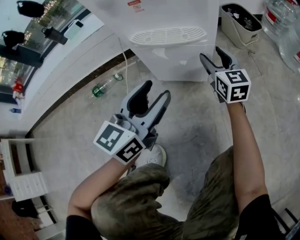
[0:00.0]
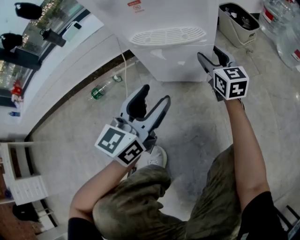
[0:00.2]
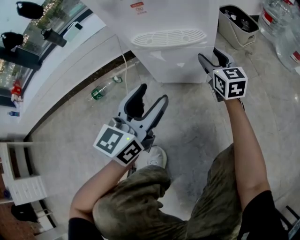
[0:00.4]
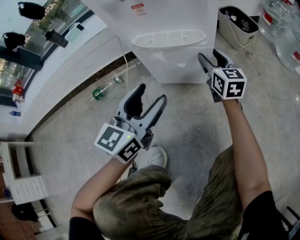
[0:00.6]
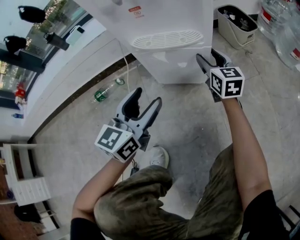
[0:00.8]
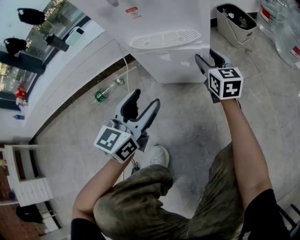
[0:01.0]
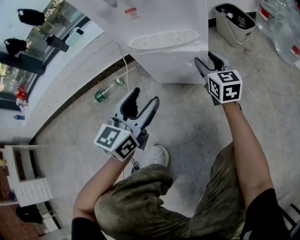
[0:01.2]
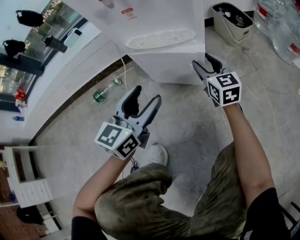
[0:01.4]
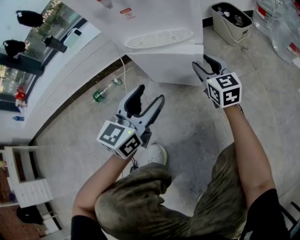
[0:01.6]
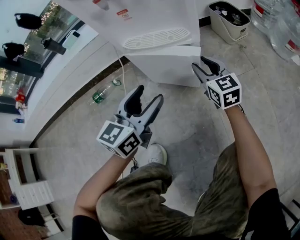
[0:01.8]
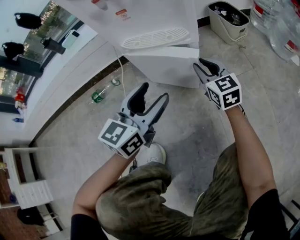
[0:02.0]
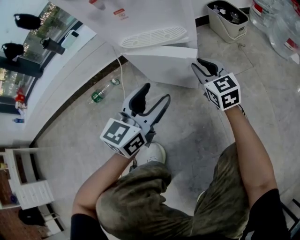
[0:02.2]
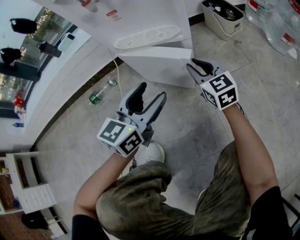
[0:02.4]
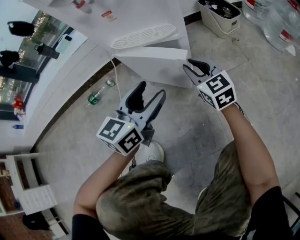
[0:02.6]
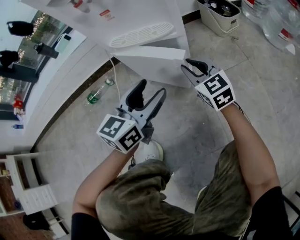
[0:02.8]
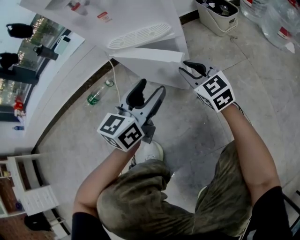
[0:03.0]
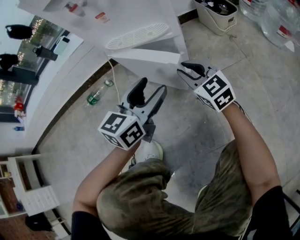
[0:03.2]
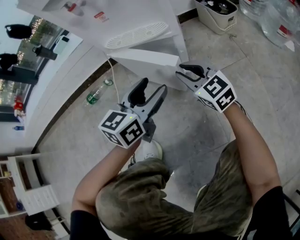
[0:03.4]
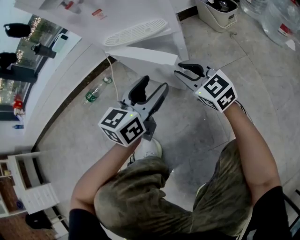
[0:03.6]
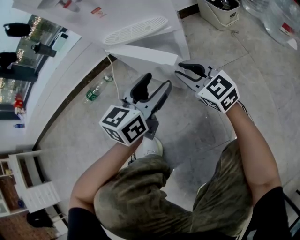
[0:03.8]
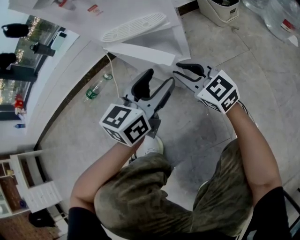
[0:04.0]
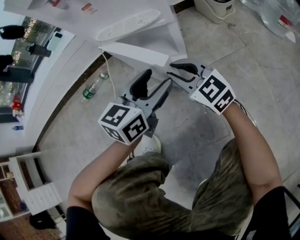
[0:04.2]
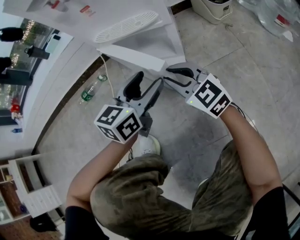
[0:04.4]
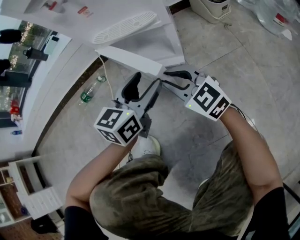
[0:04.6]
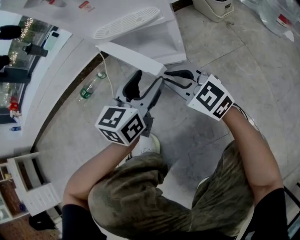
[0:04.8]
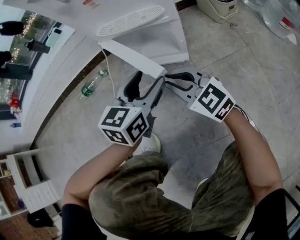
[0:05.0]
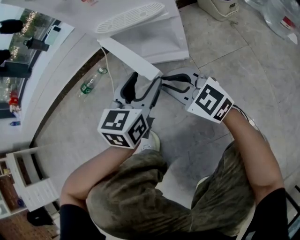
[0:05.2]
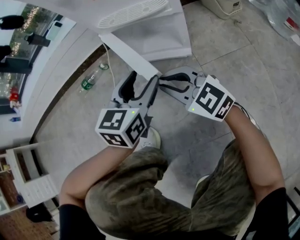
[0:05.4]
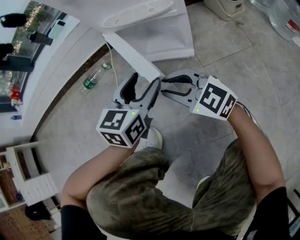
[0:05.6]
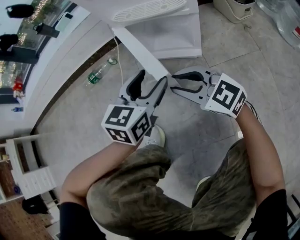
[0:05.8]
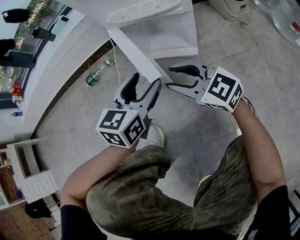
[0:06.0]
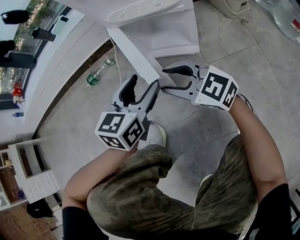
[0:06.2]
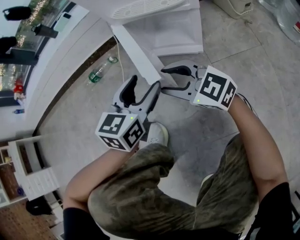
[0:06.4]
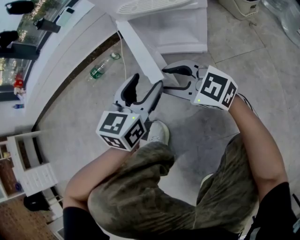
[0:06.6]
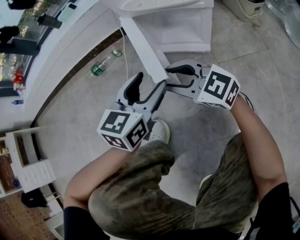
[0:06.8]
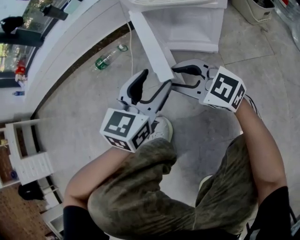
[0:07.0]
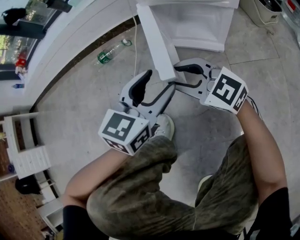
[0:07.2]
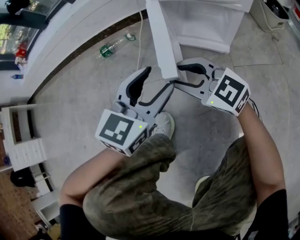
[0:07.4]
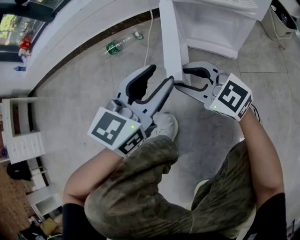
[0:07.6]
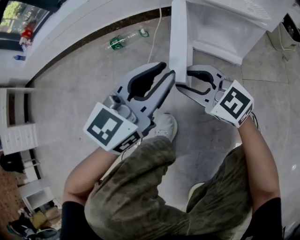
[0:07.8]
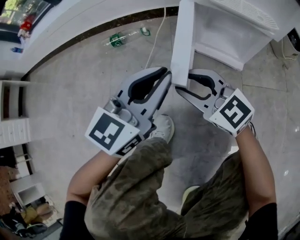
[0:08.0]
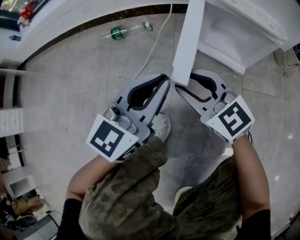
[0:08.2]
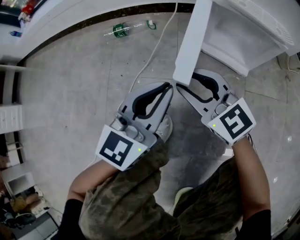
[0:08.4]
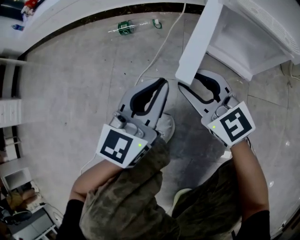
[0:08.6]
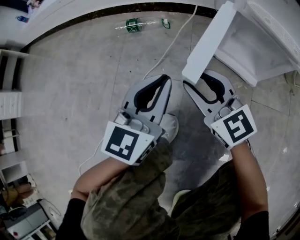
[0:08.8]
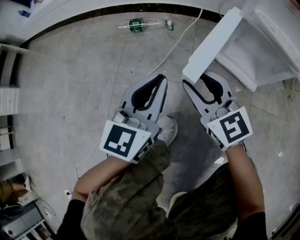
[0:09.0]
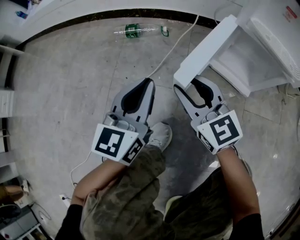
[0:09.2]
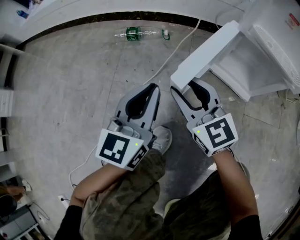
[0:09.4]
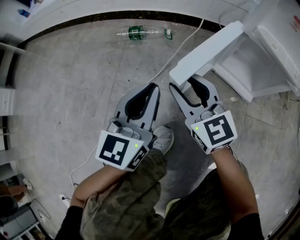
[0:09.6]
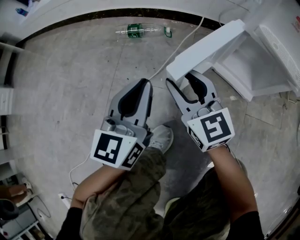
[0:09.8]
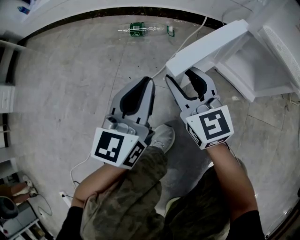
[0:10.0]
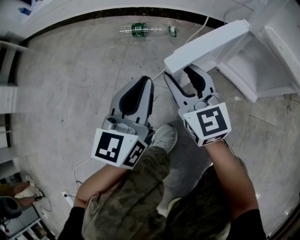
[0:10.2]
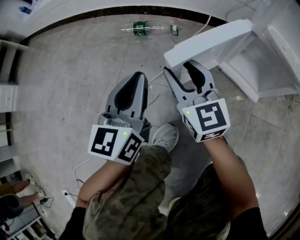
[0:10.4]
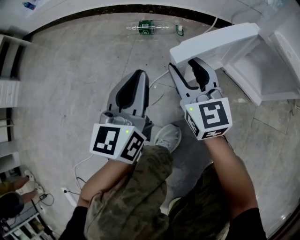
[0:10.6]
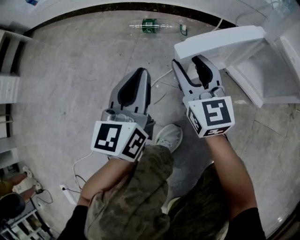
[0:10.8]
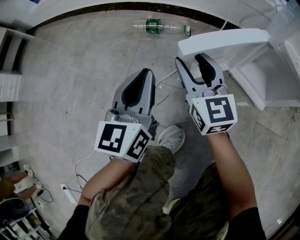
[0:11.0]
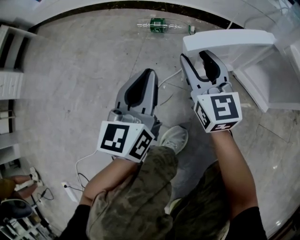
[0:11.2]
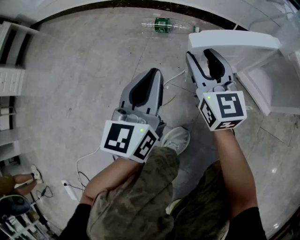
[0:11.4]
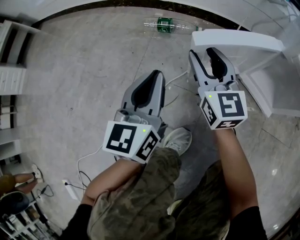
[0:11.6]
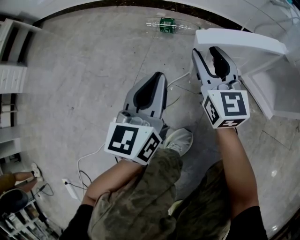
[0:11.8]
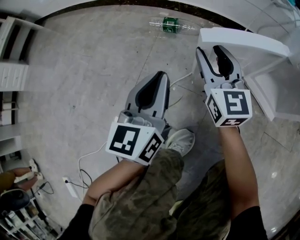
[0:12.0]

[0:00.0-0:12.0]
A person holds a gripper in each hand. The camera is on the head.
0:00.0 to 0:01.6: There are only small adjustments of the grippers.
0:01.6 to 0:03.0: The left gripper moves to the right, approximately 5 cm. Meanwhile the right gripper moves backward, some 5 cm, and closes.
0:03.0 to 0:04.4: The right gripper goes roughly 5 cm backward.
0:04.4 to 0:06.0: The two grippers go about 5 cm to the left.
0:06.0 to 0:07.6: Both grippers travel together to the left, some 10 cm.
0:07.6 to 0:09.0: The left gripper heads to the left, covering approximately 15 cm, swivels about 30 degrees, and closes up. The right gripper is displaced to the left and forward by some 10 cm.
0:09.0 to 0:10.4: The right gripper goes approximately 10 cm forward and to the left. The left gripper is displaced to the left and forward by about 10 cm.
0:10.4 to 0:12.0: The right gripper goes about 10 cm forward. The left gripper changes place by approximately 5 cm.

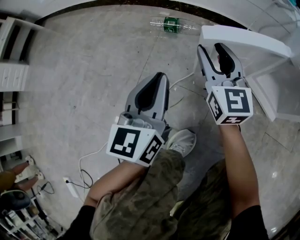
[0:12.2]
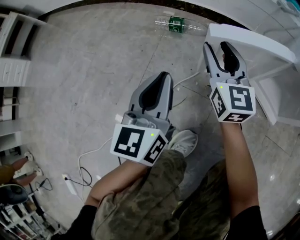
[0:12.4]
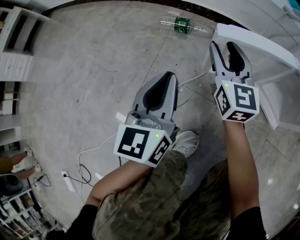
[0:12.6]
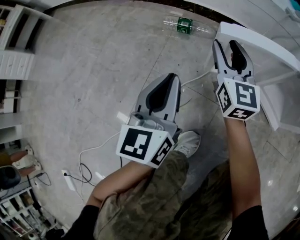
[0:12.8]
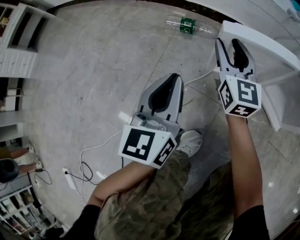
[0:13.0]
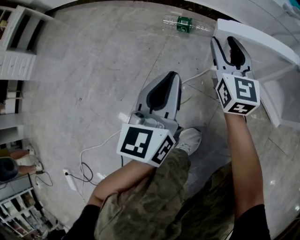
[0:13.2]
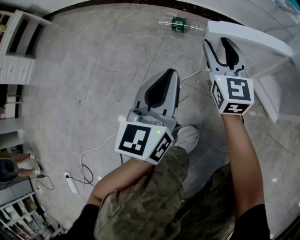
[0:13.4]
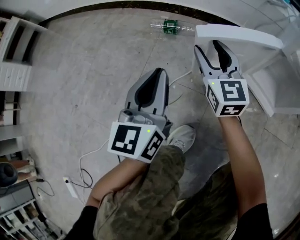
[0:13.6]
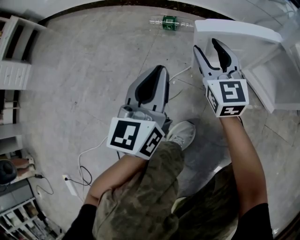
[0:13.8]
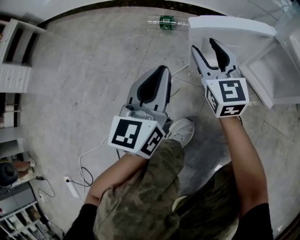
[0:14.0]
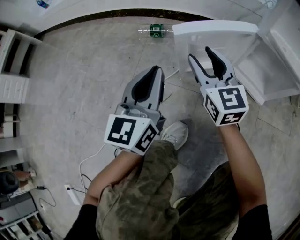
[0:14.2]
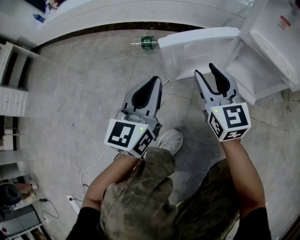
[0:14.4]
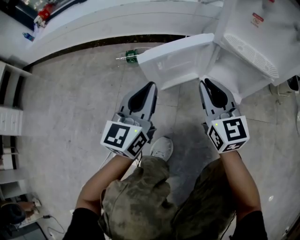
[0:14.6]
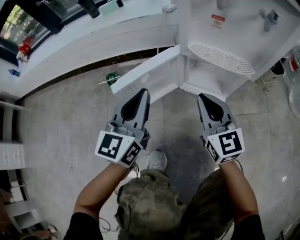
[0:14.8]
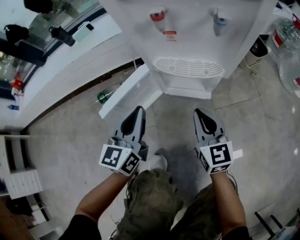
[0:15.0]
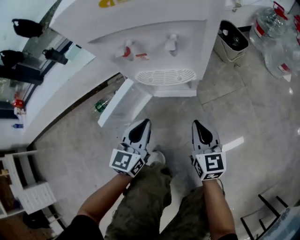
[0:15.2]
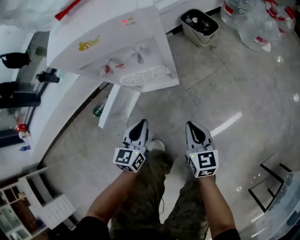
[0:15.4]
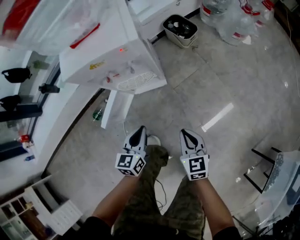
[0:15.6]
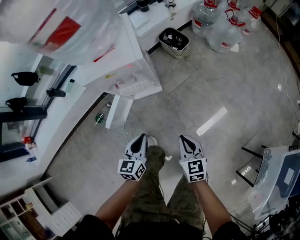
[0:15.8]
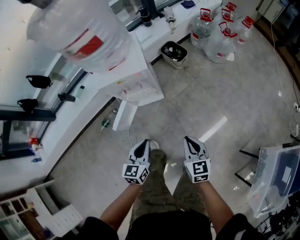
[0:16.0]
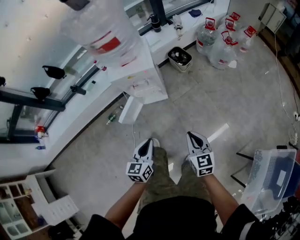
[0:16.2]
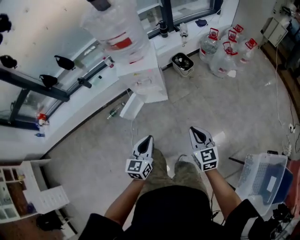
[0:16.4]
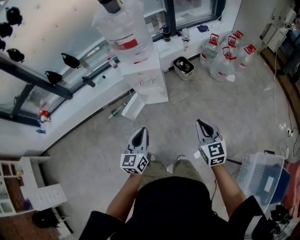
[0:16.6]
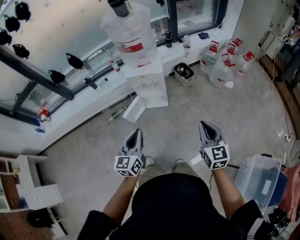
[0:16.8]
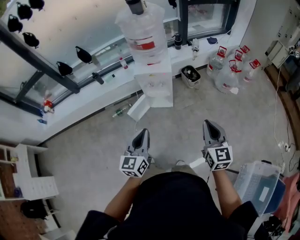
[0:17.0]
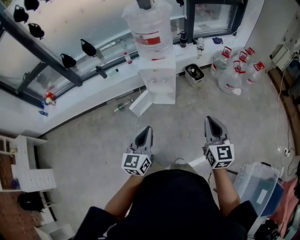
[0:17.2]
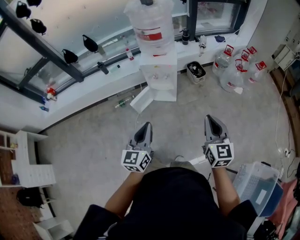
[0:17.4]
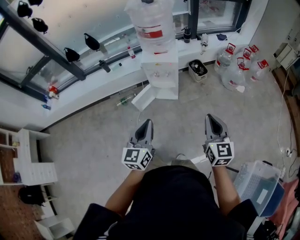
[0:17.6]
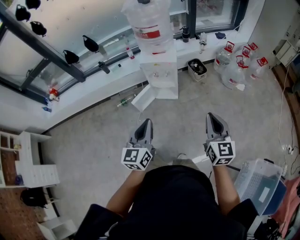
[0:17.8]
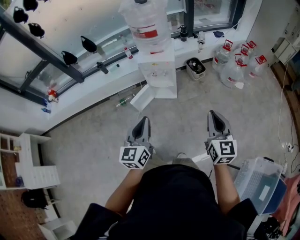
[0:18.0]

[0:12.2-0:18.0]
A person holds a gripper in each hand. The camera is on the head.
0:12.2 to 0:13.6: The grippers make only small movements.
0:13.6 to 0:15.0: The left gripper changes place by about 30 cm, and rotates roughly 40 degrees. The right gripper ends up roughly 35 cm from where it was, turns by roughly 40 degrees, and closes up.
0:15.0 to 0:16.6: The left gripper is displaced upward, backward and to the right by about 60 cm, while the right gripper goes some 70 cm upward, to the right and backward.
0:16.6 to 0:18.0: The right gripper travels upward by about 10 cm. The left gripper moves upward and backward, roughly 10 cm.

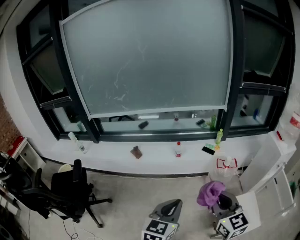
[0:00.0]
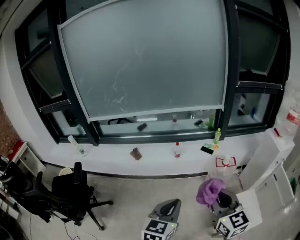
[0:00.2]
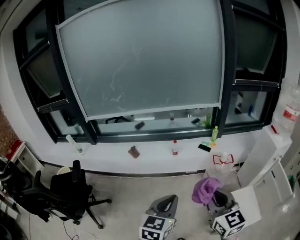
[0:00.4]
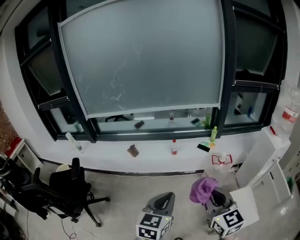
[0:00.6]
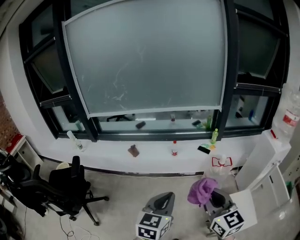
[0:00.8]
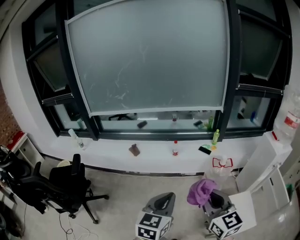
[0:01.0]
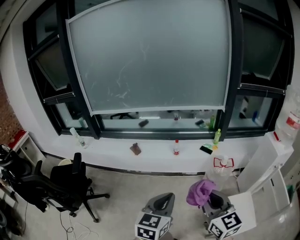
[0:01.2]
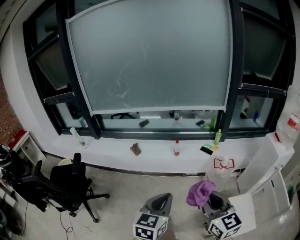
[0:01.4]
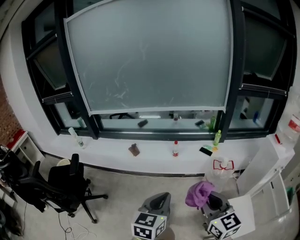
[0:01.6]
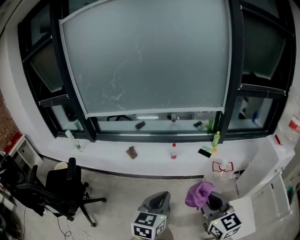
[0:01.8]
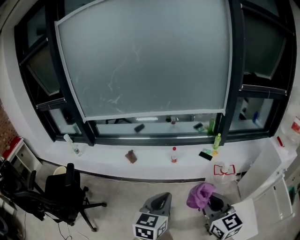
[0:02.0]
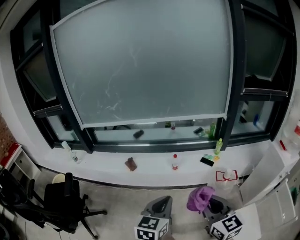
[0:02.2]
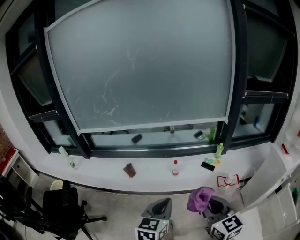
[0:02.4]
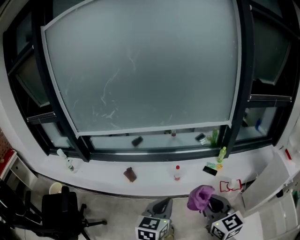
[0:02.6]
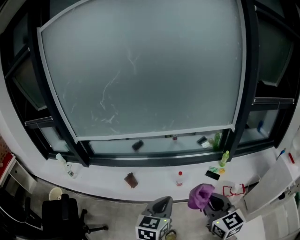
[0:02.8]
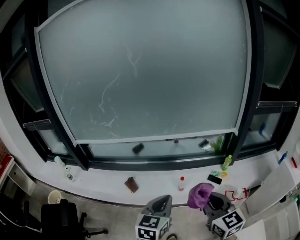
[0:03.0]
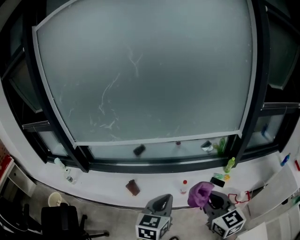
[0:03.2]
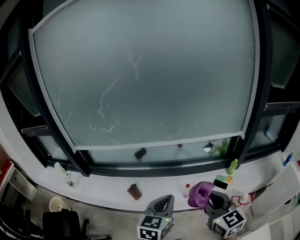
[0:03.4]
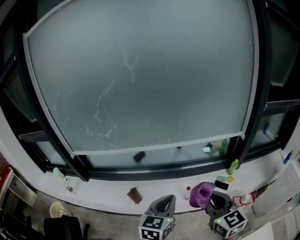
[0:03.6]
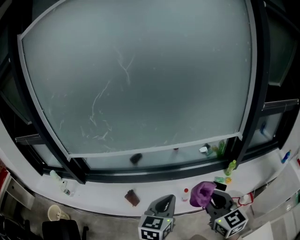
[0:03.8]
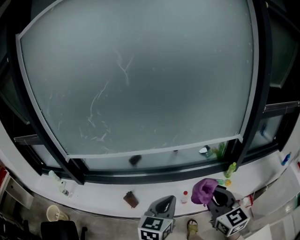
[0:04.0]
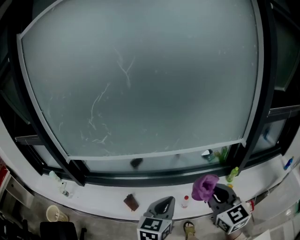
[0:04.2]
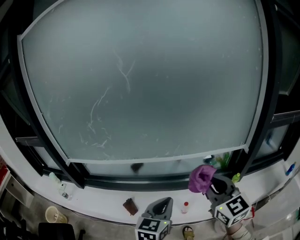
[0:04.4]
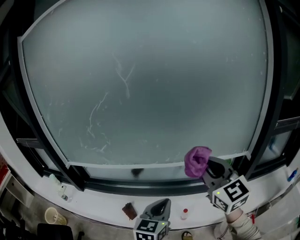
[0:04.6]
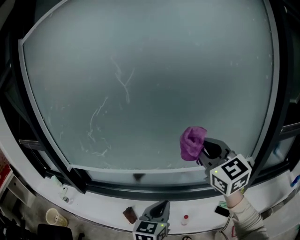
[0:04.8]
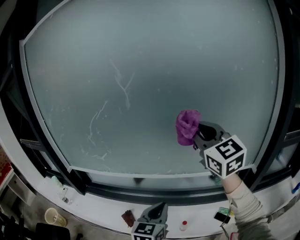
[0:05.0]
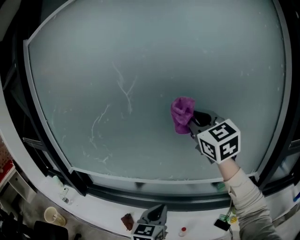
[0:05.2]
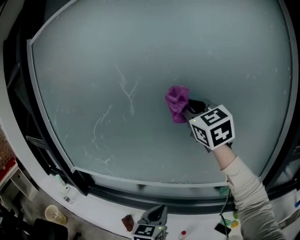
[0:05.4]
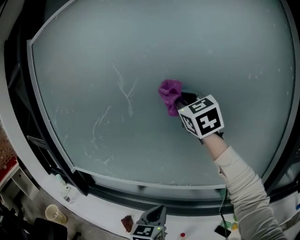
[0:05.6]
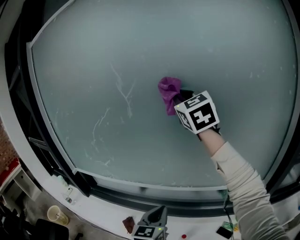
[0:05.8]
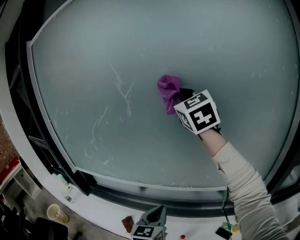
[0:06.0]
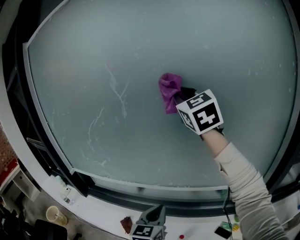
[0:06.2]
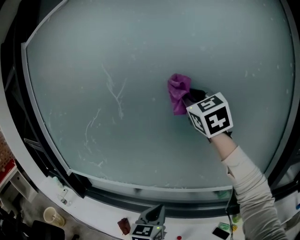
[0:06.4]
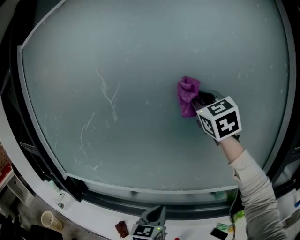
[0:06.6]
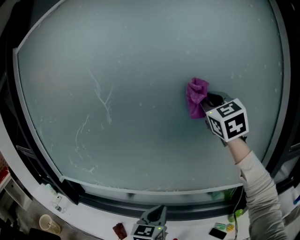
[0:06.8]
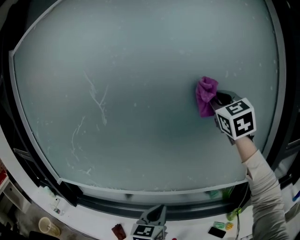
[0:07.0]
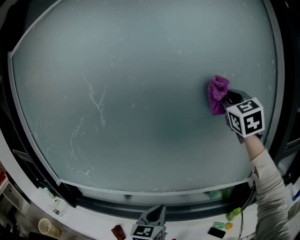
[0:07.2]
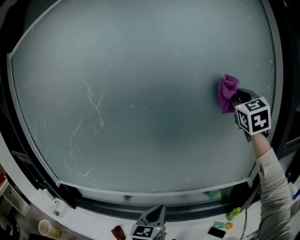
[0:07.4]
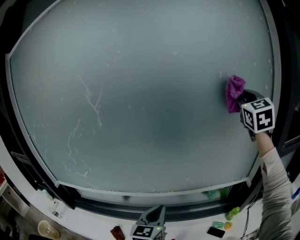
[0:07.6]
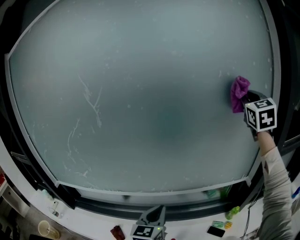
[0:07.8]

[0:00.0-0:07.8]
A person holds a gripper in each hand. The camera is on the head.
0:00.0 to 0:01.6: The grippers move only a little.
0:01.6 to 0:03.2: The pair of grippers is taken forward, some 40 cm.
0:03.2 to 0:04.6: The right gripper heads forward and upward, covering roughly 30 cm. The left gripper shifts some 20 cm forward.
0:04.6 to 0:06.2: The left gripper travels forward by some 15 cm, while the right gripper is displaced forward and upward by roughly 35 cm.
0:06.2 to 0:07.8: The left gripper goes about 5 cm to the right, while the right gripper moves to the right, some 35 cm, and rotates approximately 30 degrees.
